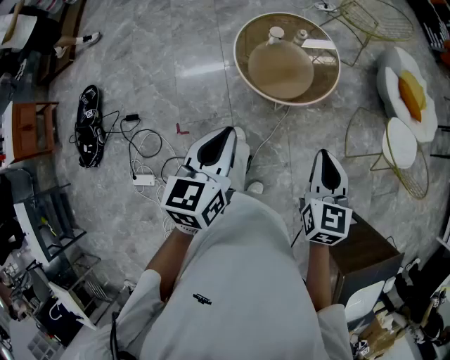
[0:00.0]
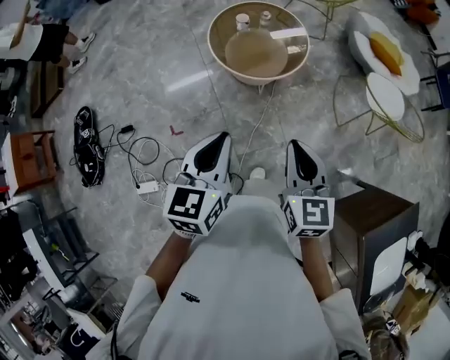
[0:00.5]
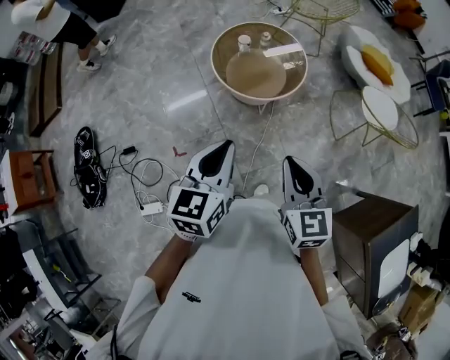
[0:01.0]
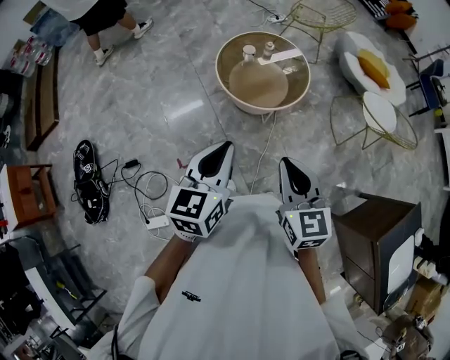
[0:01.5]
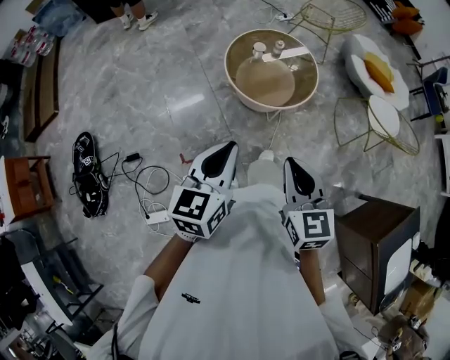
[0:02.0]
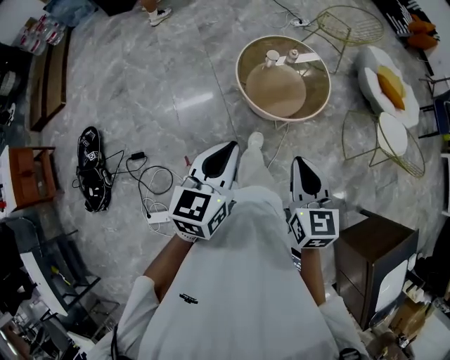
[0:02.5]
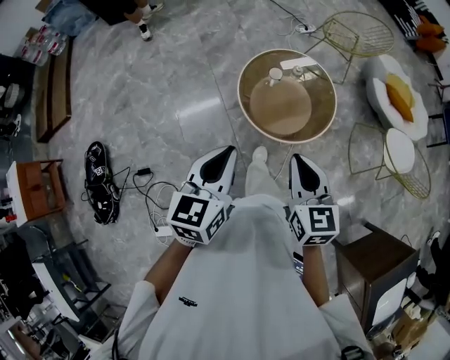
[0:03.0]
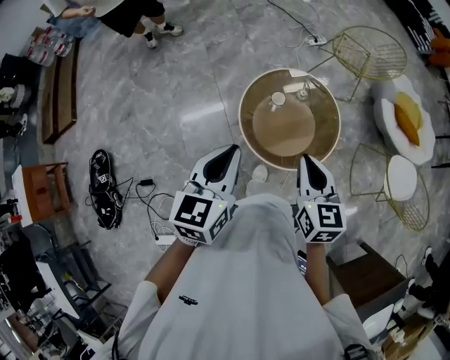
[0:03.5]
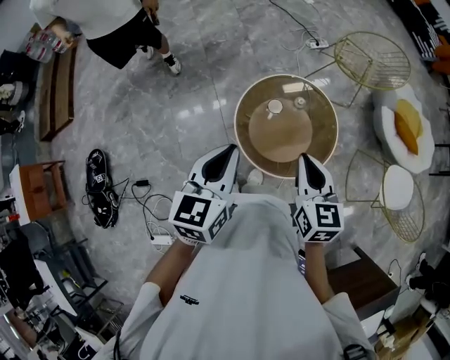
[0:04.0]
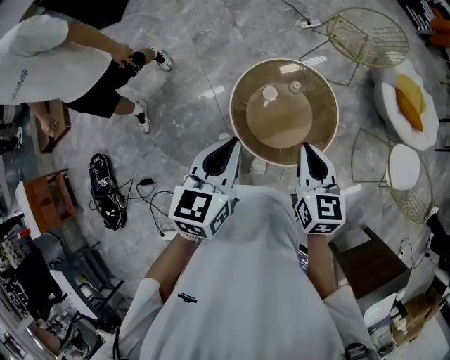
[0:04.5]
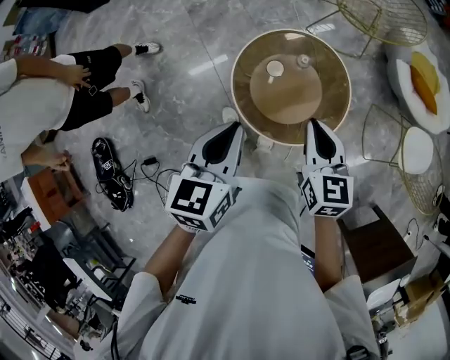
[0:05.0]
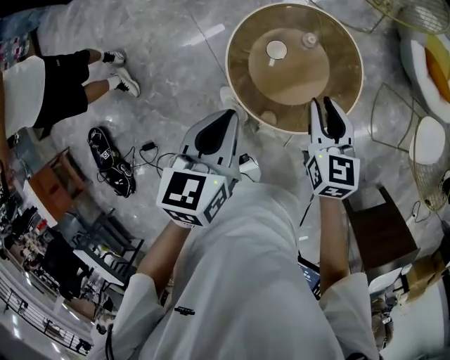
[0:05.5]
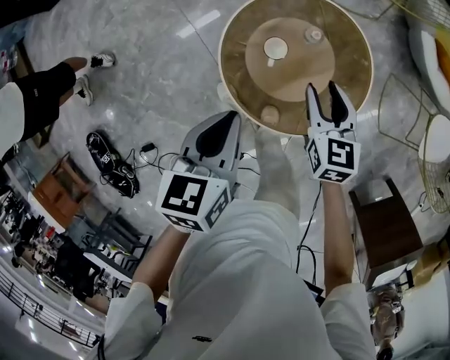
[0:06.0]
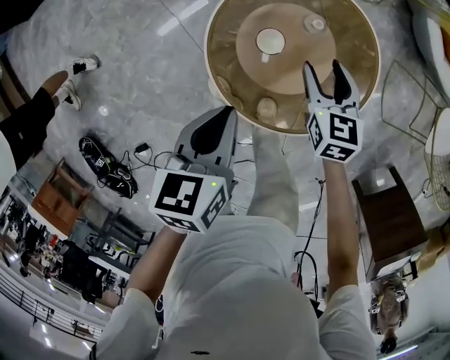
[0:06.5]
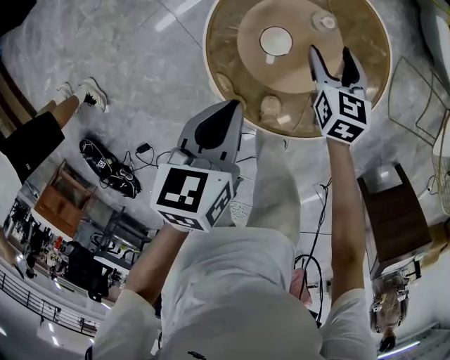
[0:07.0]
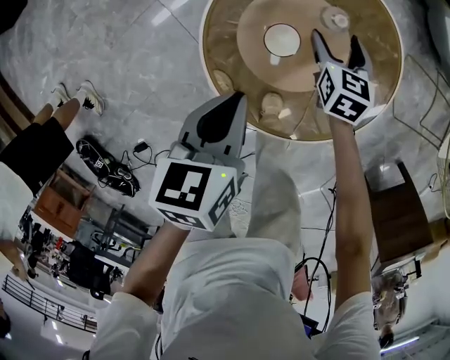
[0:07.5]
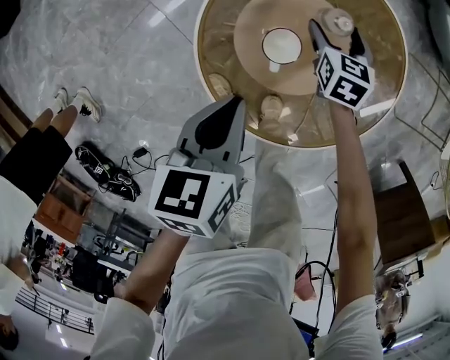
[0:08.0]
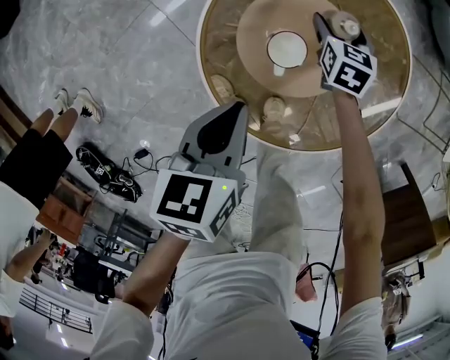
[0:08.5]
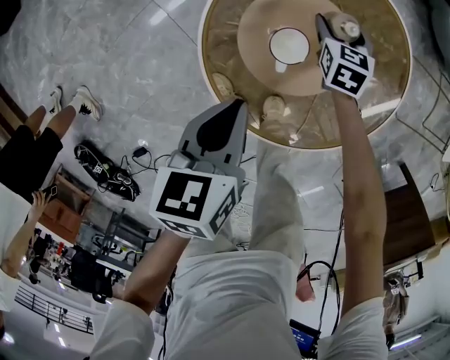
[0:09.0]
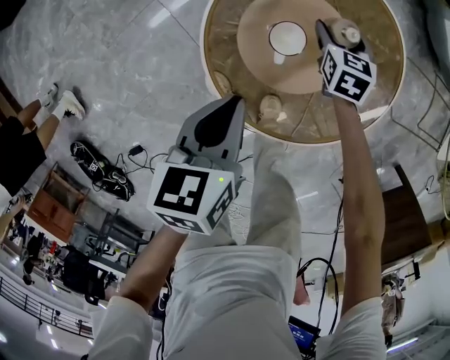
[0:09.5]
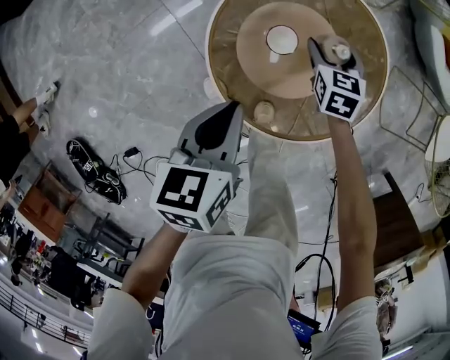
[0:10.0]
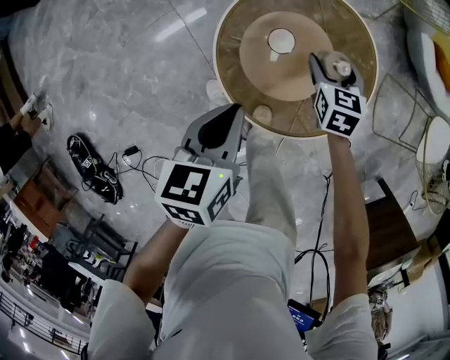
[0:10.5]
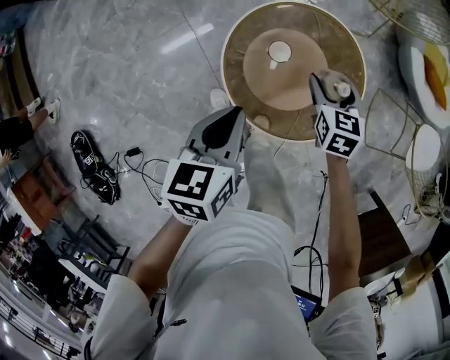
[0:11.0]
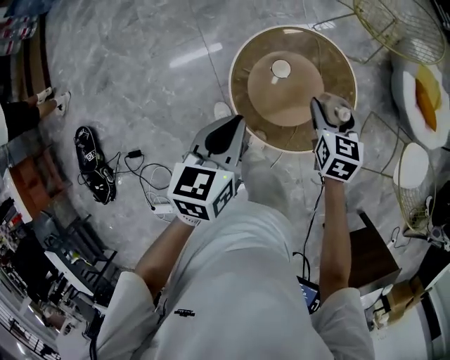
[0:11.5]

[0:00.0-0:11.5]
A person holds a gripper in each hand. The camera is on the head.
0:00.0 to 0:02.0: The left gripper travels to the left and backward by roughly 10 cm, while the right gripper moves to the left and backward, about 20 cm.
0:02.0 to 0:04.0: The grippers both shift forward by some 40 cm.
0:04.0 to 0:06.0: Both grippers travel together downward and forward, approximately 30 cm. The left gripper rotates about 30 degrees, while the right gripper opens its fingers.
0:06.0 to 0:07.5: The right gripper heads downward and forward, covering about 25 cm, and opens its fingers, while the left gripper moves downward, approximately 15 cm.
0:09.5 to 0:11.5: The right gripper shifts about 35 cm upward and backward. Meanwhile the left gripper heads upward, covering about 25 cm, and rotates approximately 20 degrees.

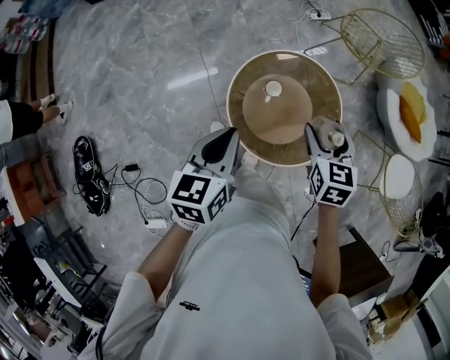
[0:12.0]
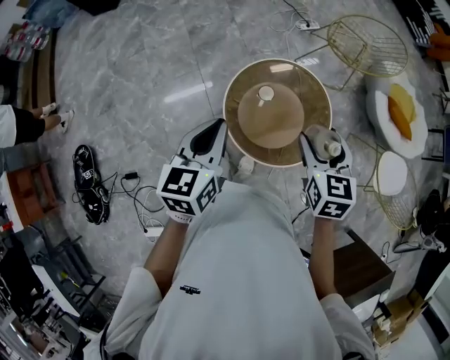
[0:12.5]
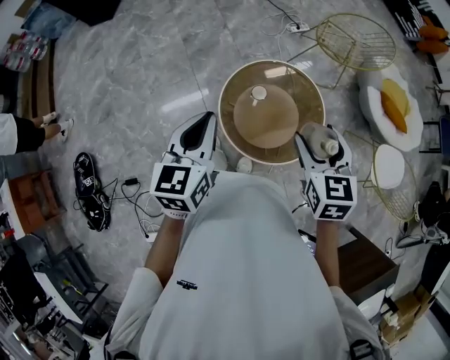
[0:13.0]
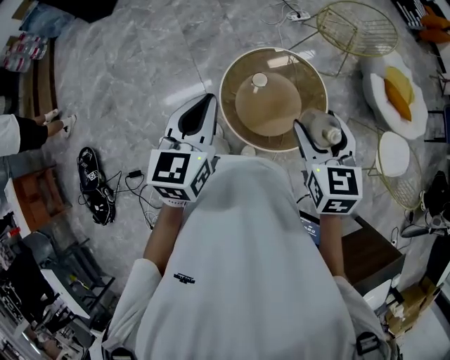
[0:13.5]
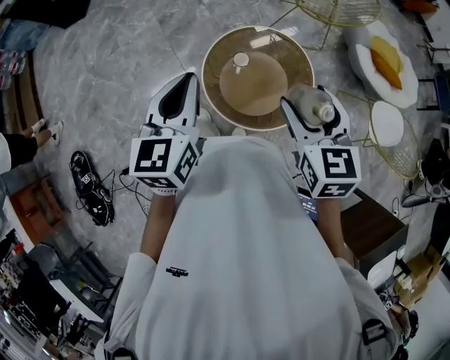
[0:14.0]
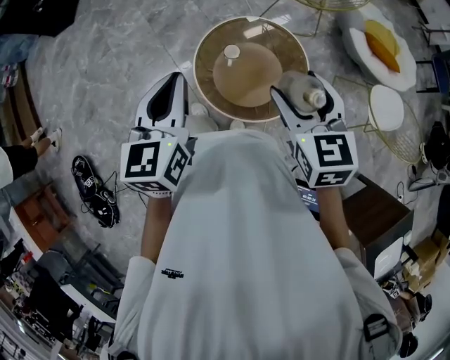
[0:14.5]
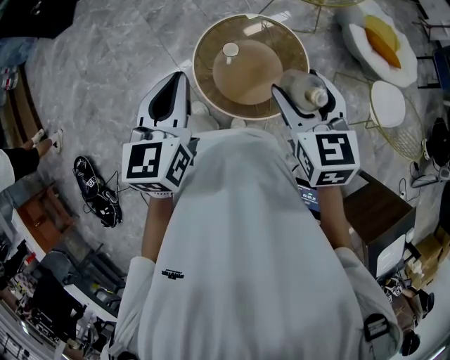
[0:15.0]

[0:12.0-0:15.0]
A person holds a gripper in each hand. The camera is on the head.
0:12.0 to 0:13.5: The right gripper heads upward and backward, covering about 15 cm, while the left gripper goes roughly 10 cm upward.
0:13.5 to 0:15.0: The grippers stay close to where they were, moving slightly.

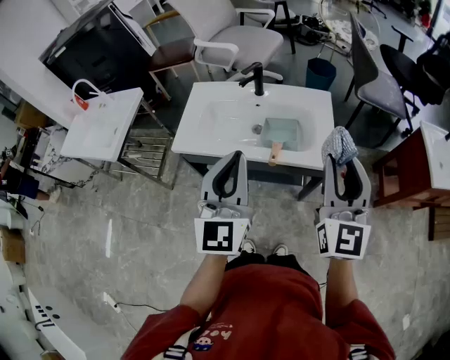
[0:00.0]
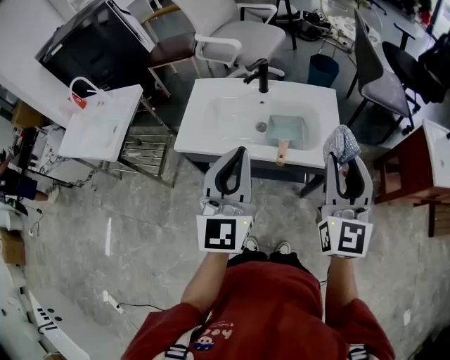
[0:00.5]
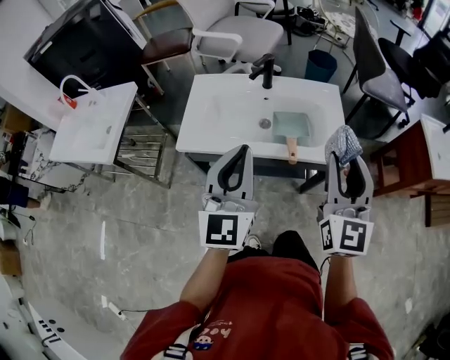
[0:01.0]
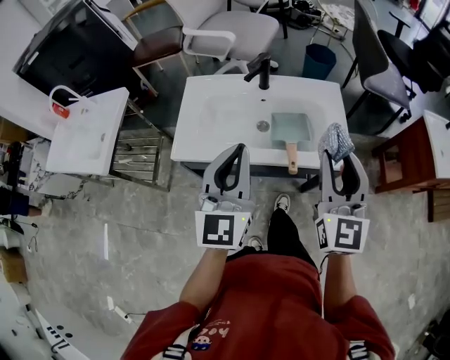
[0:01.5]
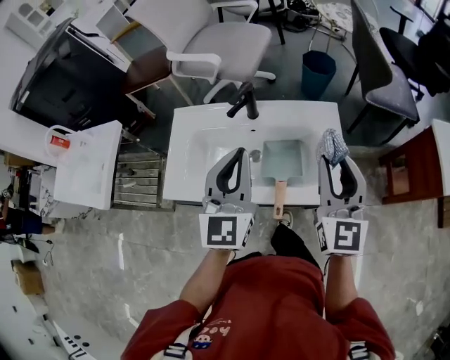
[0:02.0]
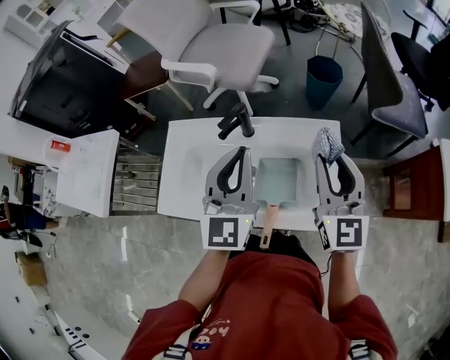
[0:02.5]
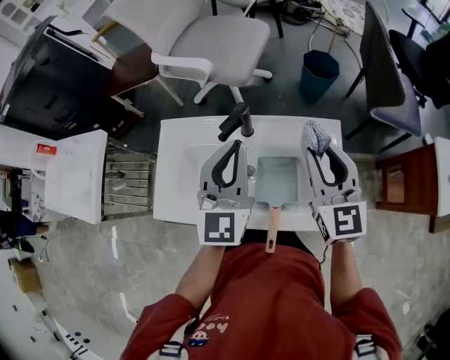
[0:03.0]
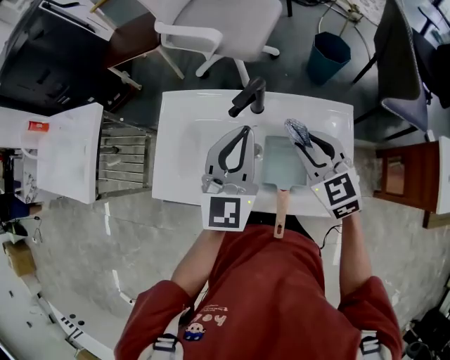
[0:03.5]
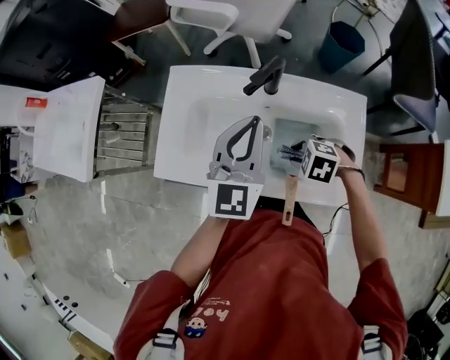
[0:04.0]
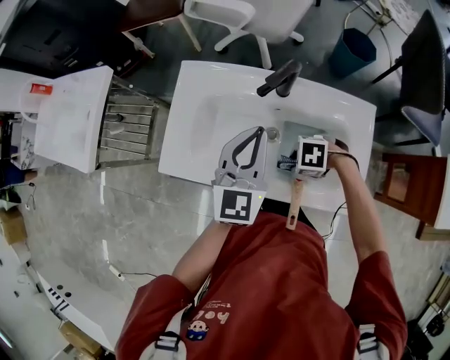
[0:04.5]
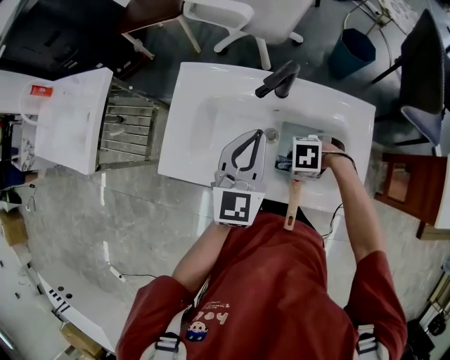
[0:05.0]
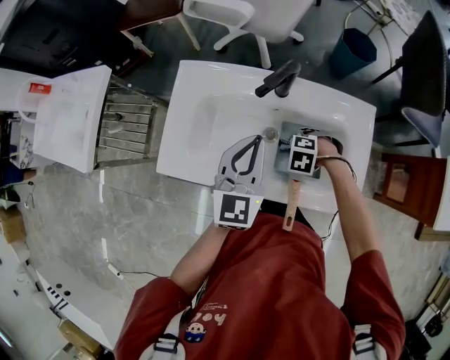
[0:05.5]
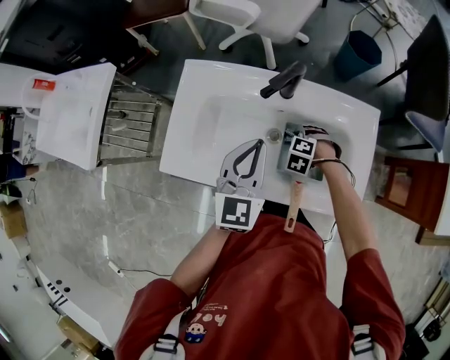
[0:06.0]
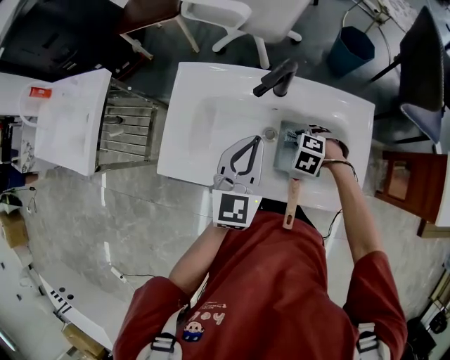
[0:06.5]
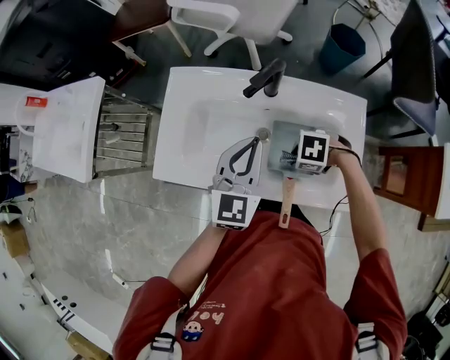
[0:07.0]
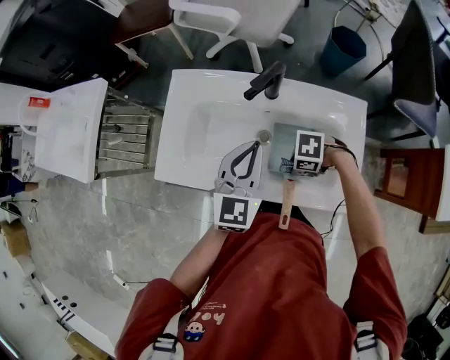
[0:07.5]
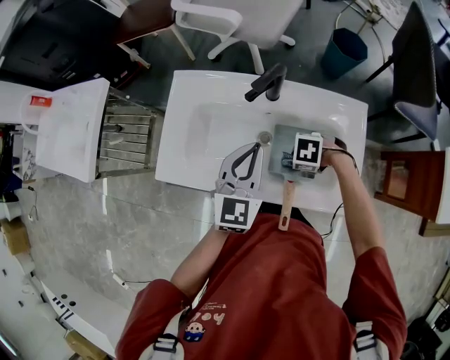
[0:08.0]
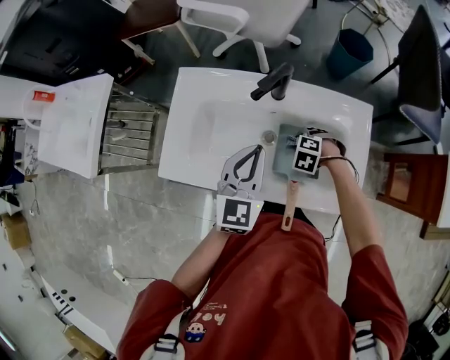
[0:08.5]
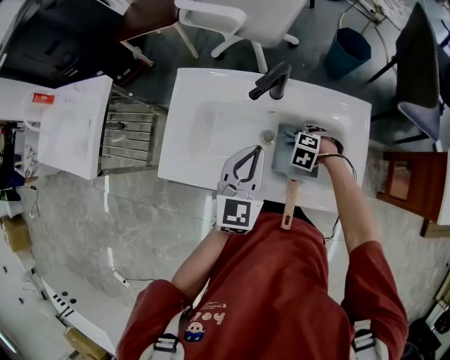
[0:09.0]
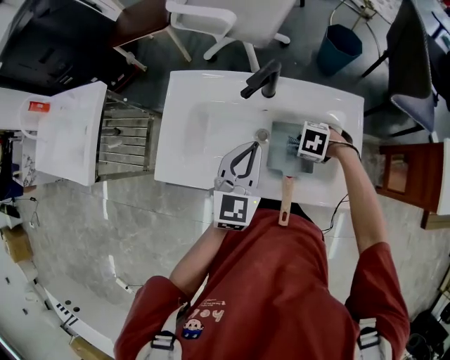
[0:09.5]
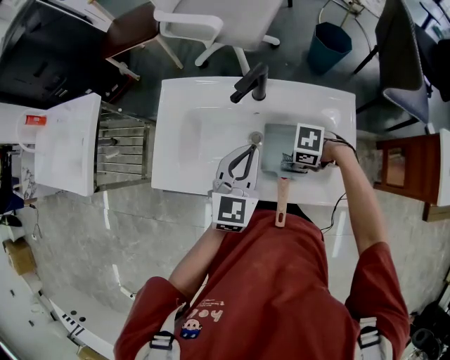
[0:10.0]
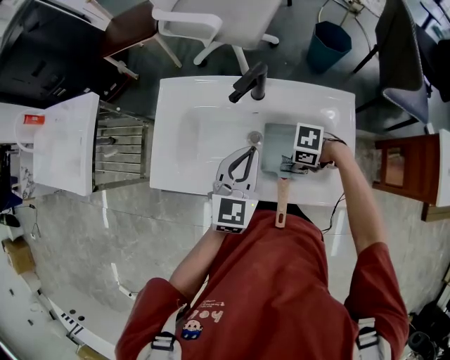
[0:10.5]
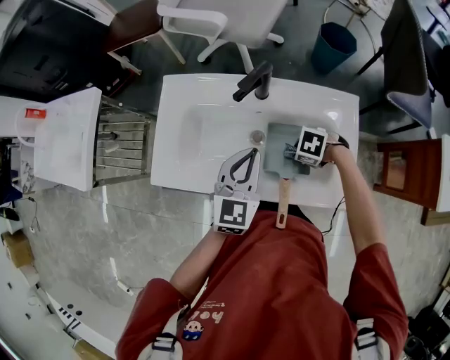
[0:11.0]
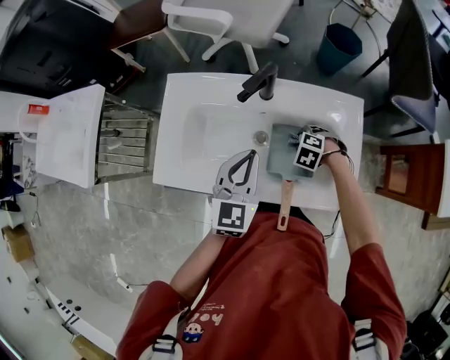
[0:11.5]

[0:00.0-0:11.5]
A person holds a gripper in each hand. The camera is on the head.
0:00.0 to 0:02.0: The two grippers go about 20 cm forward.
0:02.0 to 0:04.0: The right gripper is displaced downward by some 30 cm, and points its fingers approximately 70 degrees further downward. The left gripper moves approximately 15 cm.
0:04.0 to 0:06.0: The left gripper moves downward, some 5 cm, while the right gripper travels downward by approximately 10 cm, and changes its angle by roughly 20 degrees.
0:06.0 to 0:07.5: The right gripper changes place by about 10 cm, and changes its angle by approximately 40 degrees.
0:09.5 to 0:11.5: The right gripper travels downward by some 5 cm.

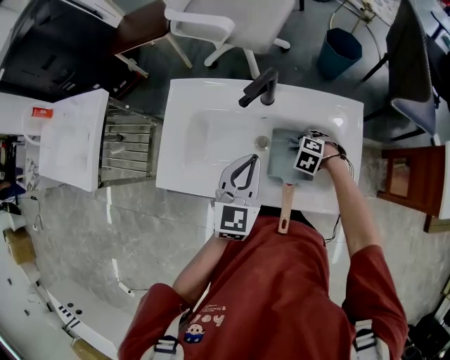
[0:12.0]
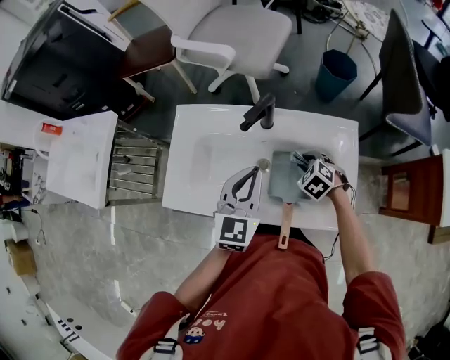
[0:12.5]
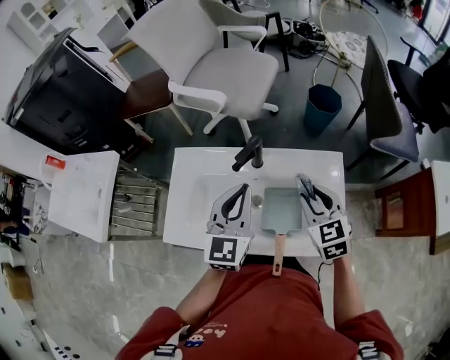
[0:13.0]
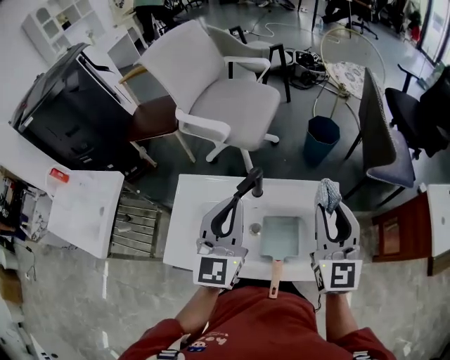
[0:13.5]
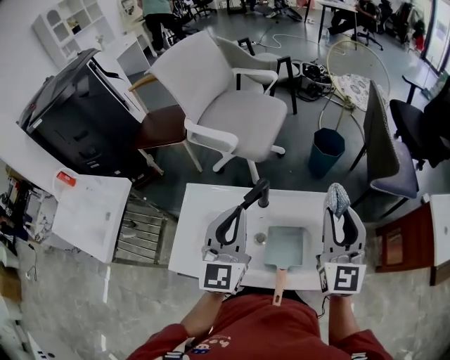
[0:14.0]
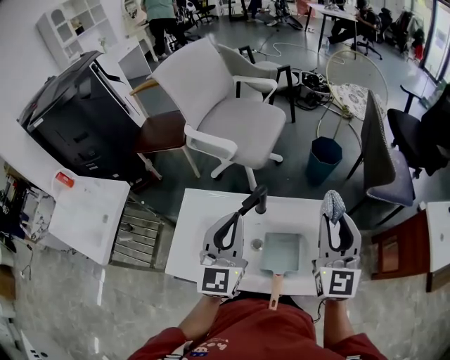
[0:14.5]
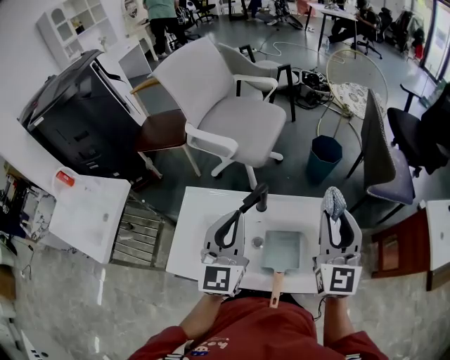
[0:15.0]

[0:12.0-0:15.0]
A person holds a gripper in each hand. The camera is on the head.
0:12.0 to 0:13.5: The right gripper is displaced upward by roughly 40 cm, and tips its fingers upward by roughly 80 degrees, while the left gripper is displaced upward by roughly 20 cm.
0:13.5 to 0:15.0: The grippers stay close to where they were, moving slightly.
